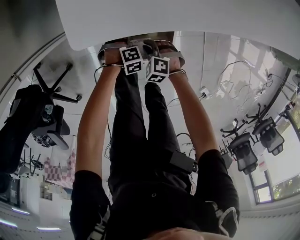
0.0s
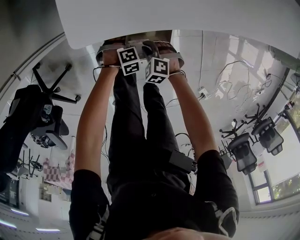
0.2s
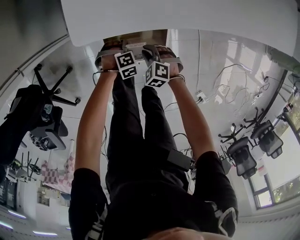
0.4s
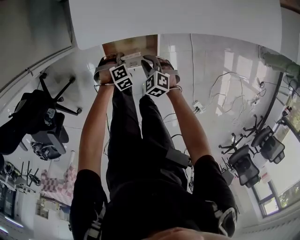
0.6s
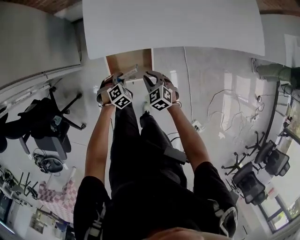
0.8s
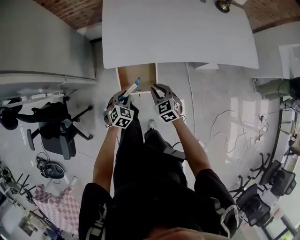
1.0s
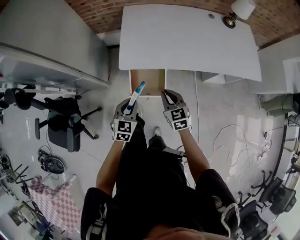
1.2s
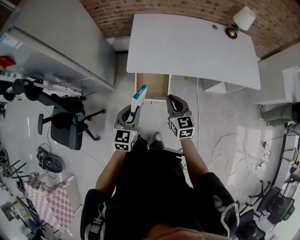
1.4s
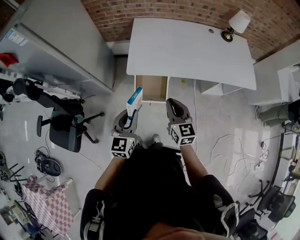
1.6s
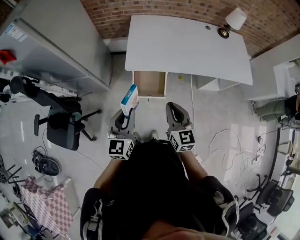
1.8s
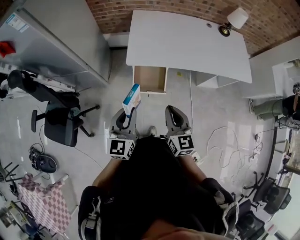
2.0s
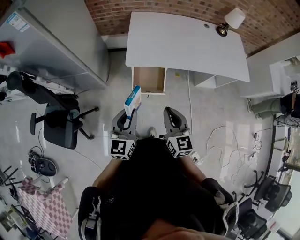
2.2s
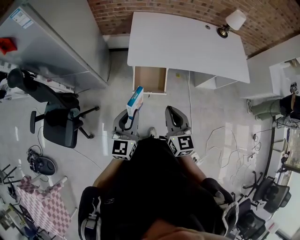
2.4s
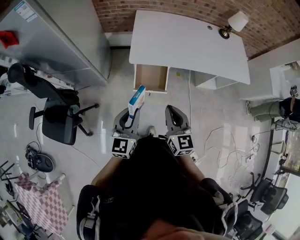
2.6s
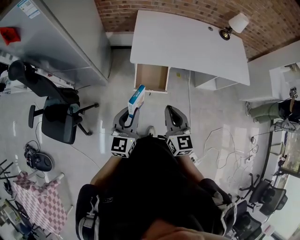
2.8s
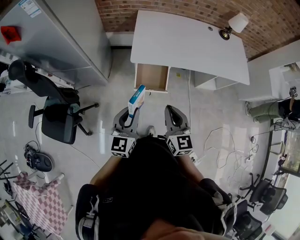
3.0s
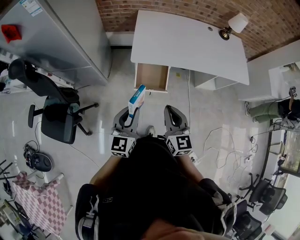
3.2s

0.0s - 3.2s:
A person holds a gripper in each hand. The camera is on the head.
0.0s - 1.6s: The grippers both shift upward by about 60 cm. The left gripper angles its fingers upward, by about 70 degrees. Meanwhile the right gripper points its fingers approximately 60 degrees further upward.
1.6s - 3.2s: The two grippers go about 10 cm backward and to the left.

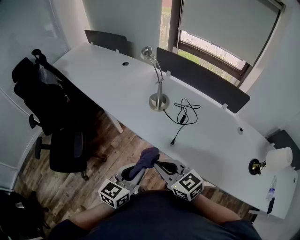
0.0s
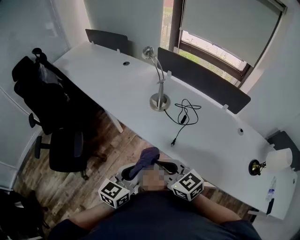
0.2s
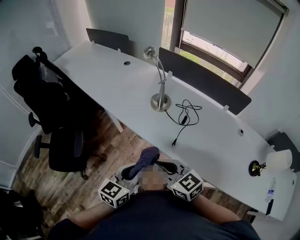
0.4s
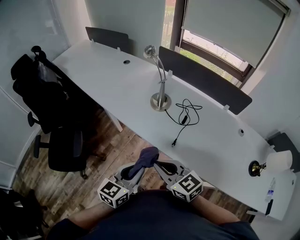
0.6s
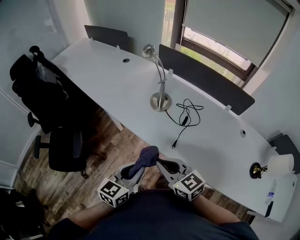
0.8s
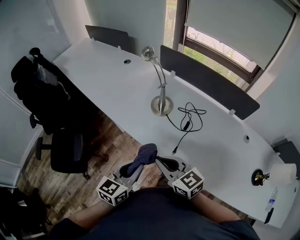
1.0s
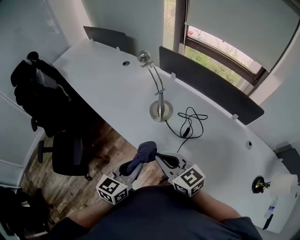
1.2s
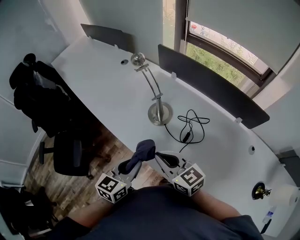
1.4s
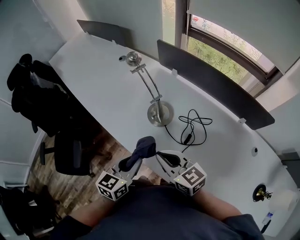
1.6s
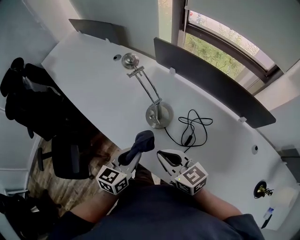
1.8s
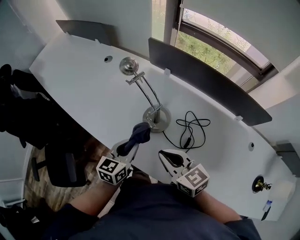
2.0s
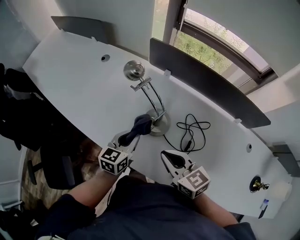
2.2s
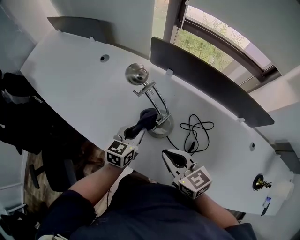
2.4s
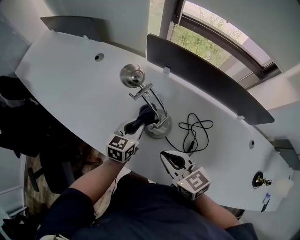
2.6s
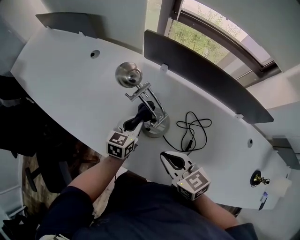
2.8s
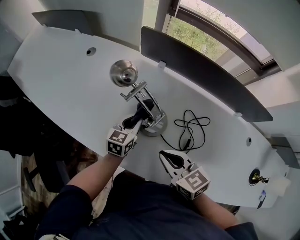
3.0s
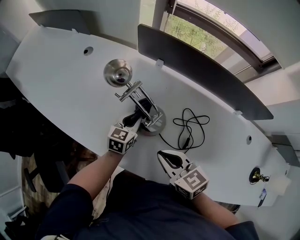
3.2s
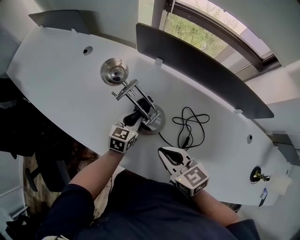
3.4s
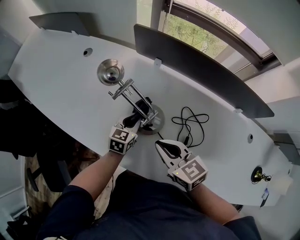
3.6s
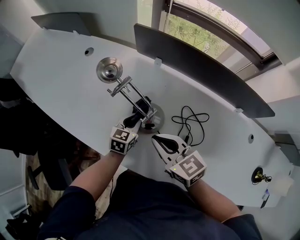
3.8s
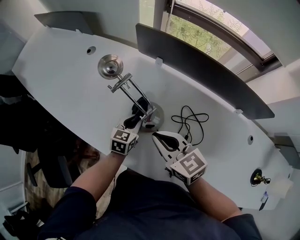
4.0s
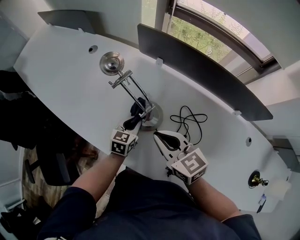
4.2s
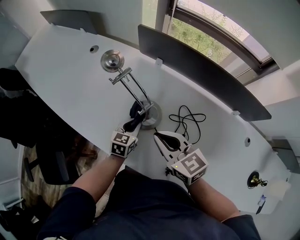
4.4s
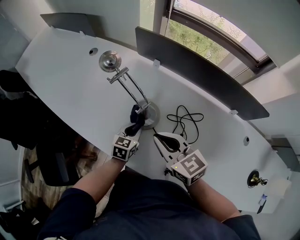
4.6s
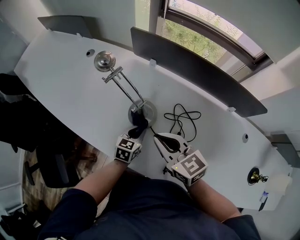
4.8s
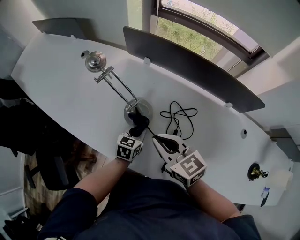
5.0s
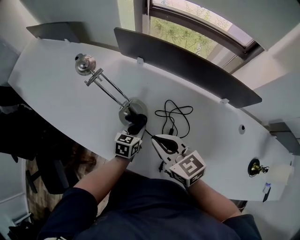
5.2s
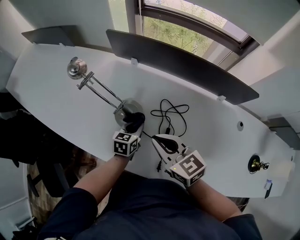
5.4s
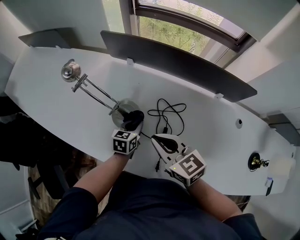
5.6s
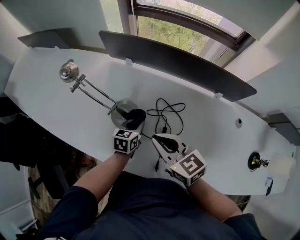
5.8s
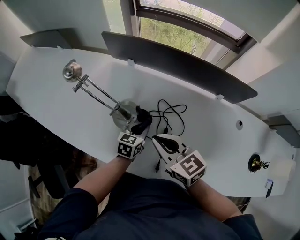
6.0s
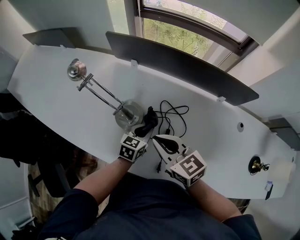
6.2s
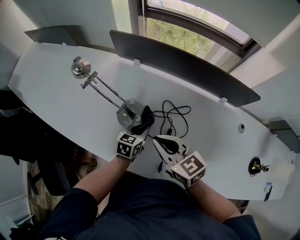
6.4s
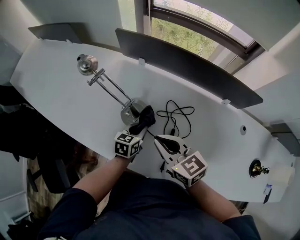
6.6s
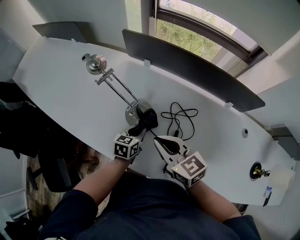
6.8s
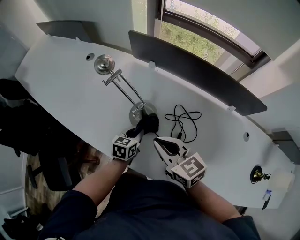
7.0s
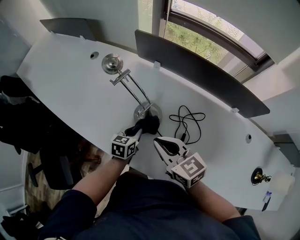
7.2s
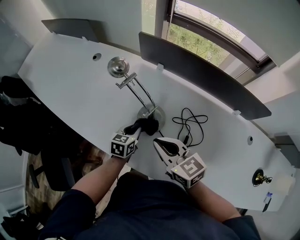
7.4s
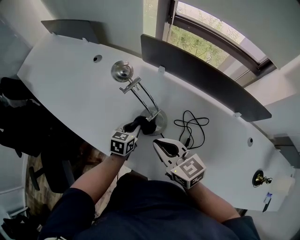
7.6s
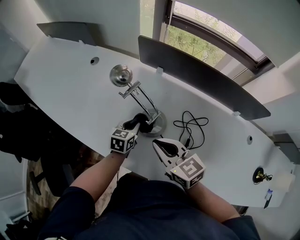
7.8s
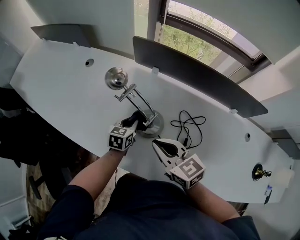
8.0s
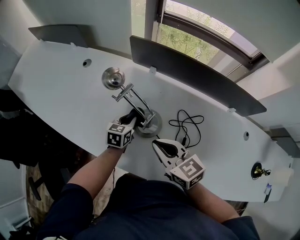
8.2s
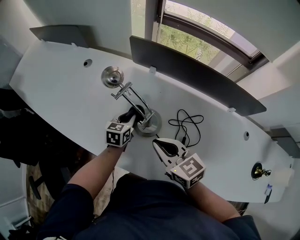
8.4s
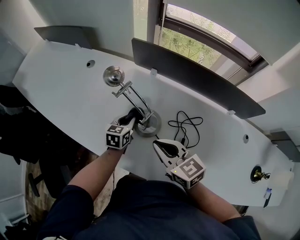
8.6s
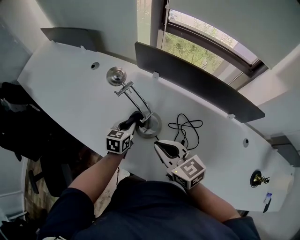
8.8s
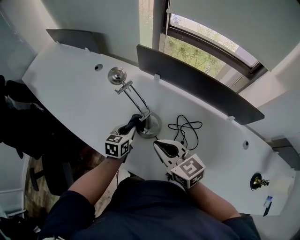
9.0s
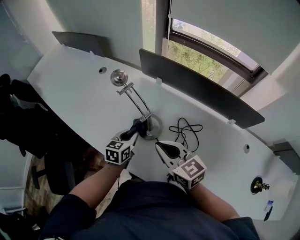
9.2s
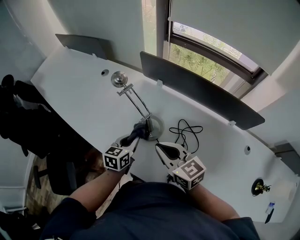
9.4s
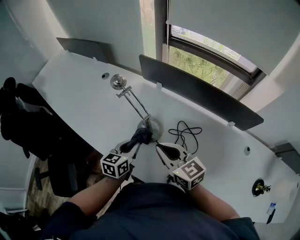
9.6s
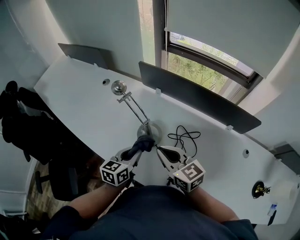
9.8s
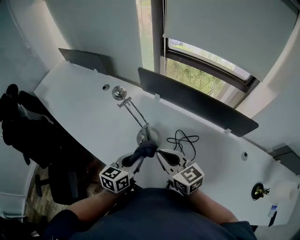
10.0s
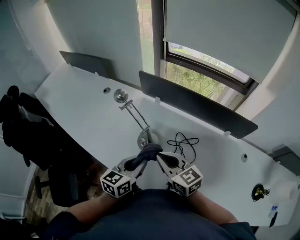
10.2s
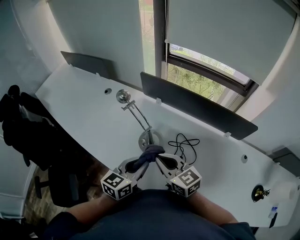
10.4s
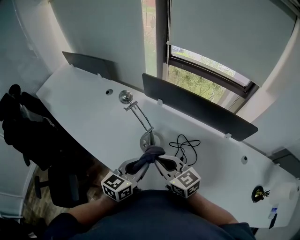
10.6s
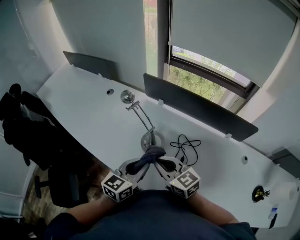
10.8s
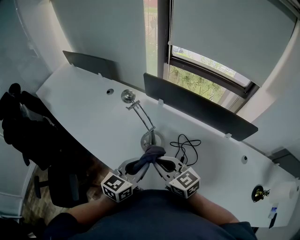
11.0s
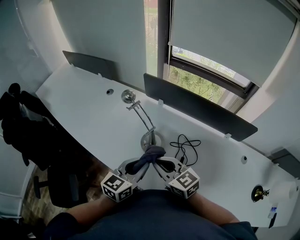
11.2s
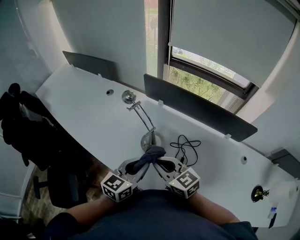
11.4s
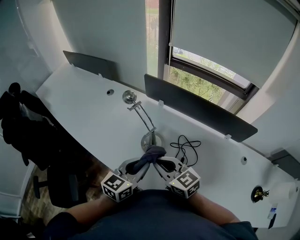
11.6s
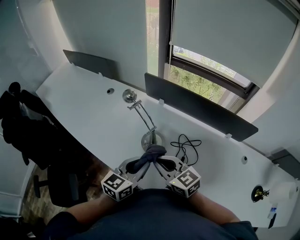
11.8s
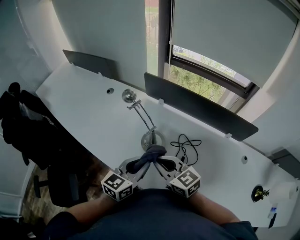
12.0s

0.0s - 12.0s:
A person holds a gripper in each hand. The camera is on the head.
0.0s - 1.6s: The two grippers go approximately 25 cm forward.
1.6s - 3.0s: The left gripper goes some 30 cm forward and downward. Meanwhile the right gripper travels forward and downward by about 15 cm, and swivels approximately 20 degrees.
3.0s - 4.4s: The left gripper moves backward, about 5 cm.
4.4s - 6.0s: The right gripper heads to the right, covering about 10 cm, while the left gripper heads to the right, covering approximately 15 cm.
6.0s - 7.6s: The grippers both shift to the left by some 15 cm.
7.6s - 9.0s: The left gripper changes place by roughly 5 cm.
9.0s - 10.4s: The left gripper shifts approximately 20 cm upward and backward, and changes its angle by roughly 20 degrees.
10.4s - 12.0s: The grippers stay close to where they were, moving slightly.

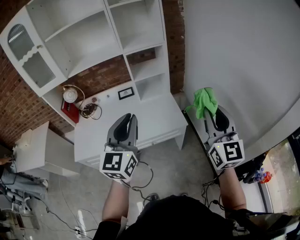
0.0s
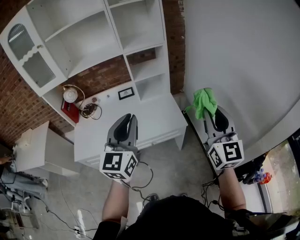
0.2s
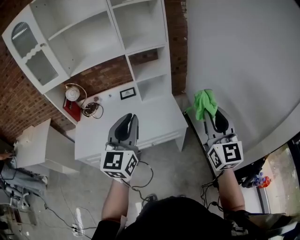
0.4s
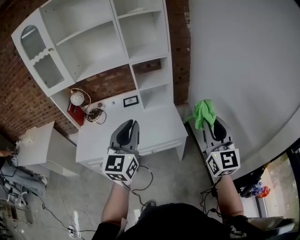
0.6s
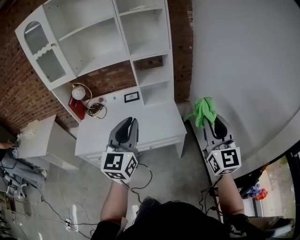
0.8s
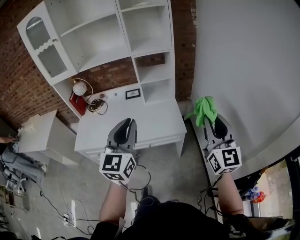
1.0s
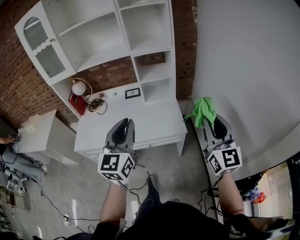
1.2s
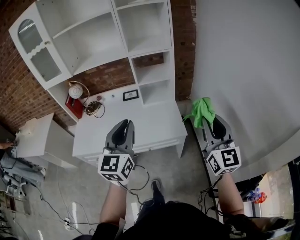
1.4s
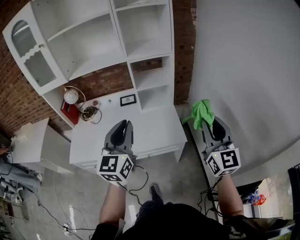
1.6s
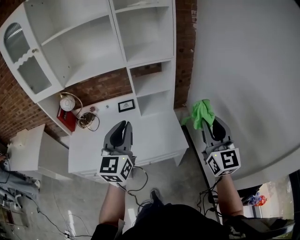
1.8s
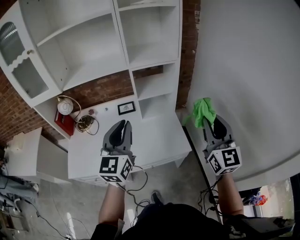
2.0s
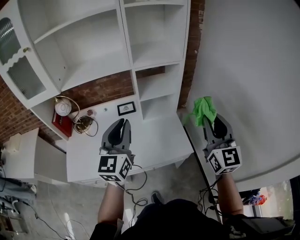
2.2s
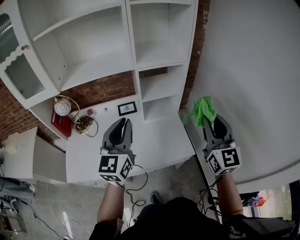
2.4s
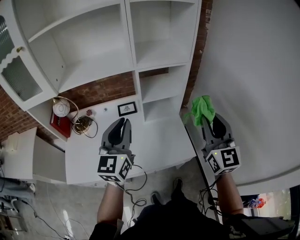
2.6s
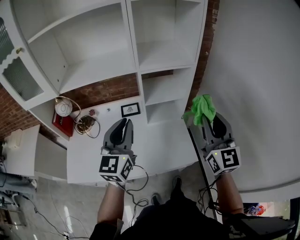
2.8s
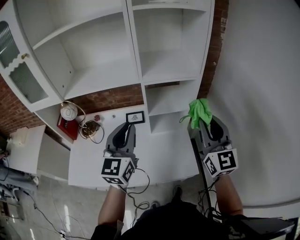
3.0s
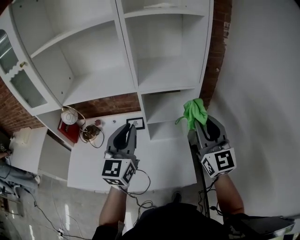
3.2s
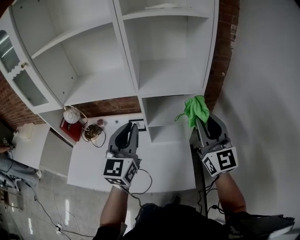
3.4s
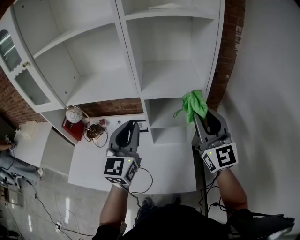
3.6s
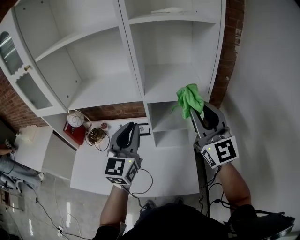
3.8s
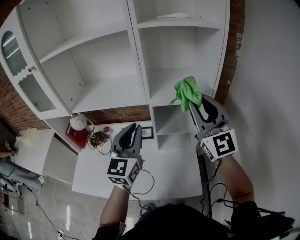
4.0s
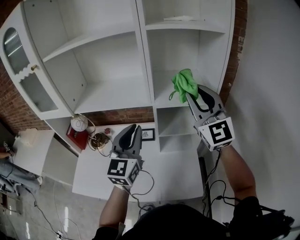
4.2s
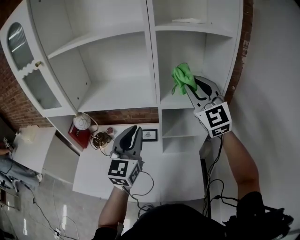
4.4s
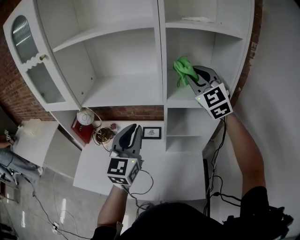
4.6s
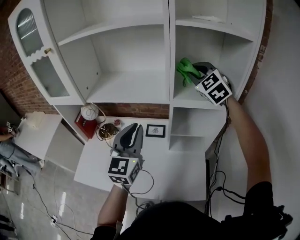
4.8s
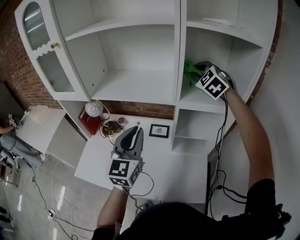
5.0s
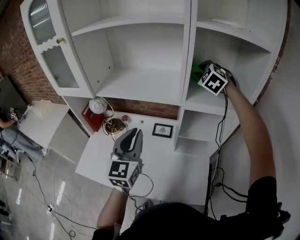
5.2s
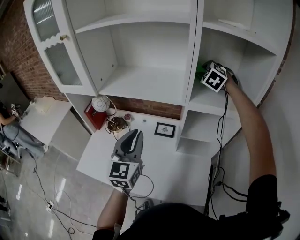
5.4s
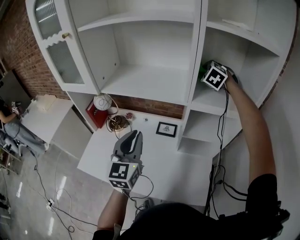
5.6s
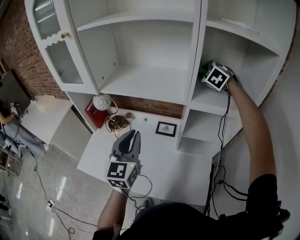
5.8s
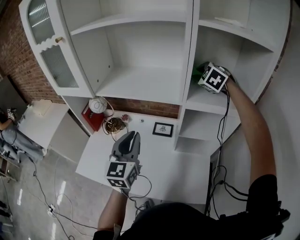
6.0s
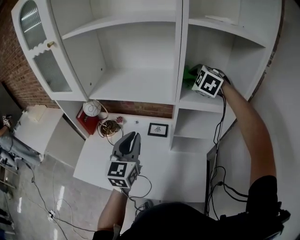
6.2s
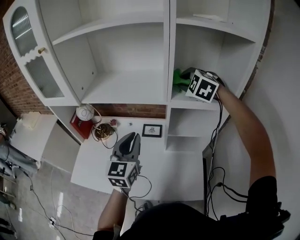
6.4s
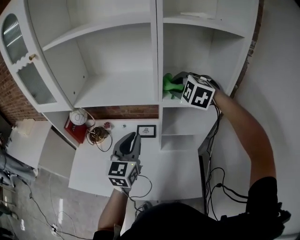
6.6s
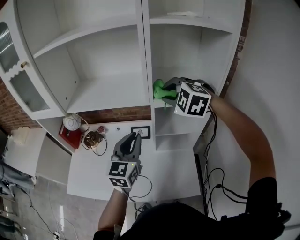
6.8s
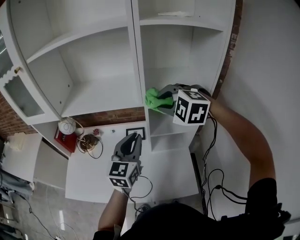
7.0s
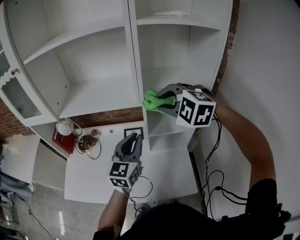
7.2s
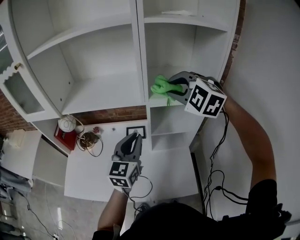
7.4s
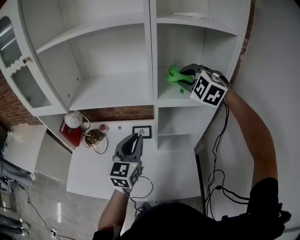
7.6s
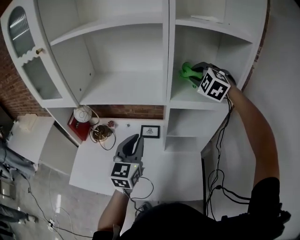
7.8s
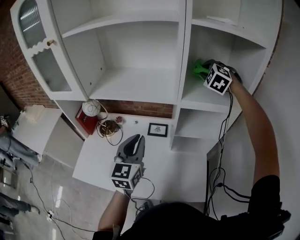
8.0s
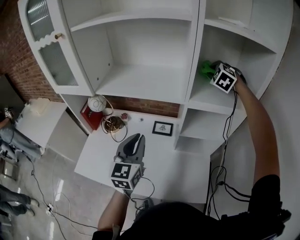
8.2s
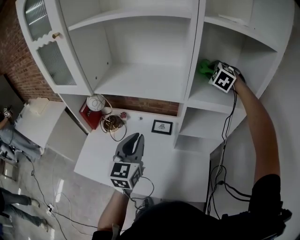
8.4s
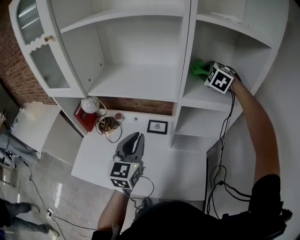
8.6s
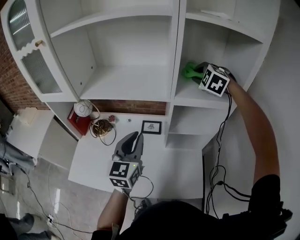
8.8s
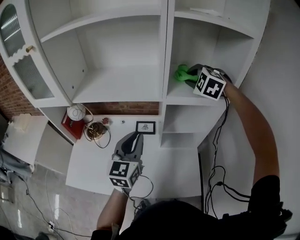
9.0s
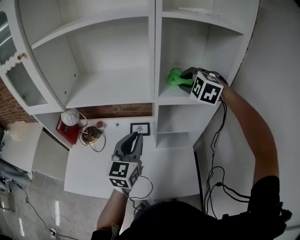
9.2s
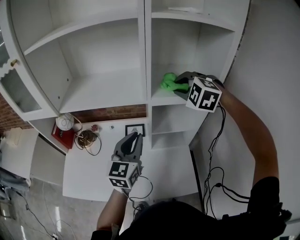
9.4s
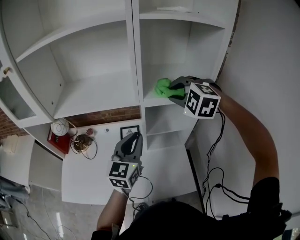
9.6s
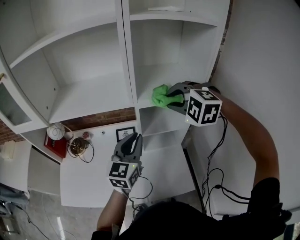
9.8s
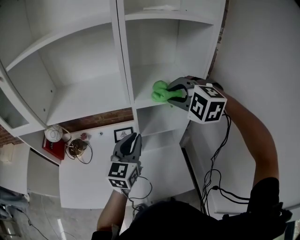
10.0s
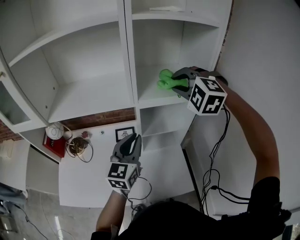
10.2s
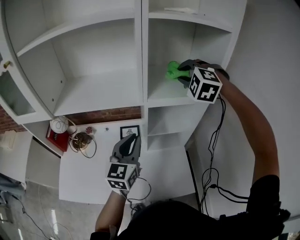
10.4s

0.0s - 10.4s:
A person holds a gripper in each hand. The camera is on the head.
0.0s - 1.4s: The right gripper shifts by approximately 5 cm.
1.4s - 3.0s: The right gripper moves forward and to the left, some 30 cm; the left gripper is displaced forward by approximately 30 cm.
3.0s - 4.4s: The right gripper shifts approximately 25 cm forward, upward and to the left, and turns by about 30 degrees. The left gripper shifts approximately 10 cm forward.
4.4s - 6.0s: The right gripper goes some 25 cm forward and downward, and tilts its fingers about 50 degrees downward. The left gripper travels to the left and downward by roughly 10 cm.
6.0s - 7.4s: The right gripper heads backward, covering about 20 cm. The left gripper travels to the right by some 10 cm.
7.4s - 9.0s: The right gripper heads forward, covering approximately 10 cm.
9.0s - 10.4s: The right gripper goes backward and returns, roughly 15 cm each way.
